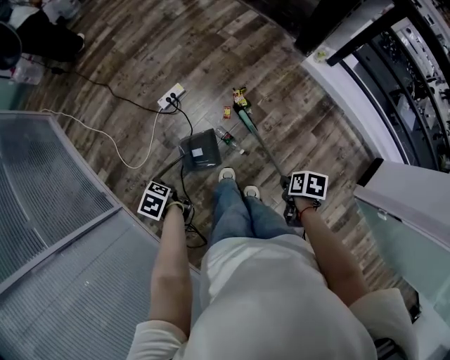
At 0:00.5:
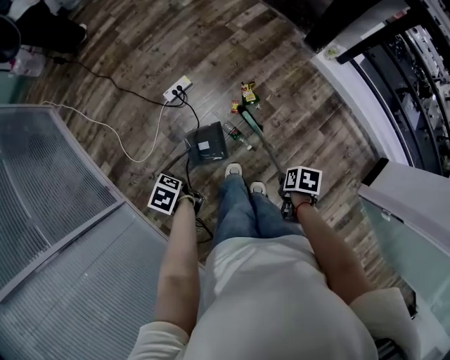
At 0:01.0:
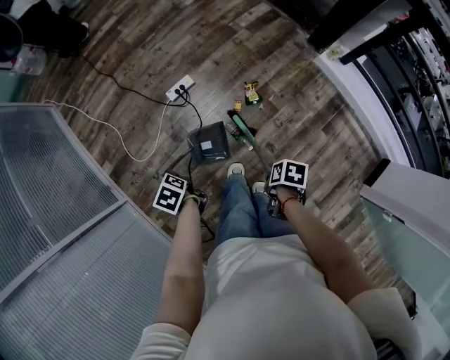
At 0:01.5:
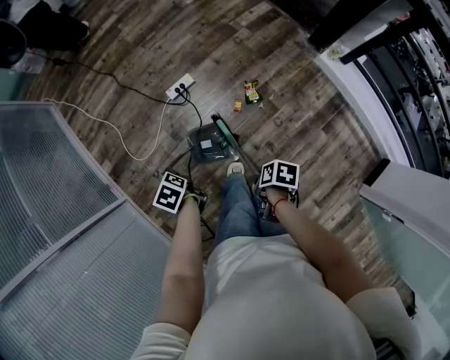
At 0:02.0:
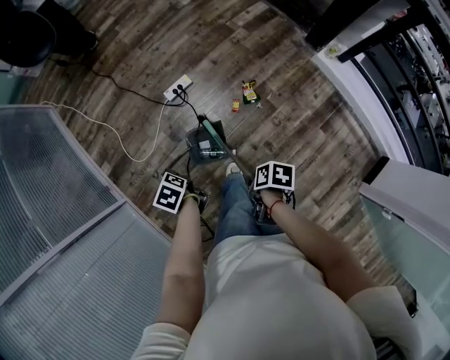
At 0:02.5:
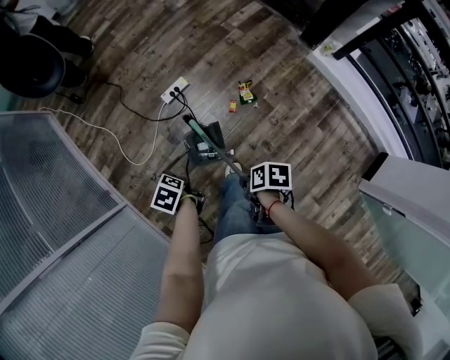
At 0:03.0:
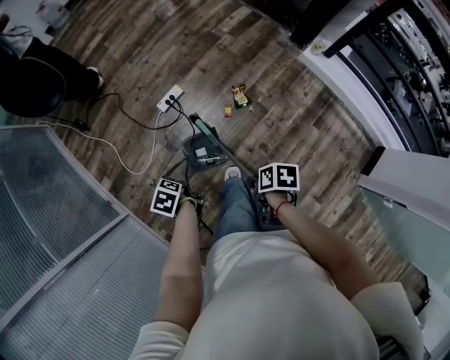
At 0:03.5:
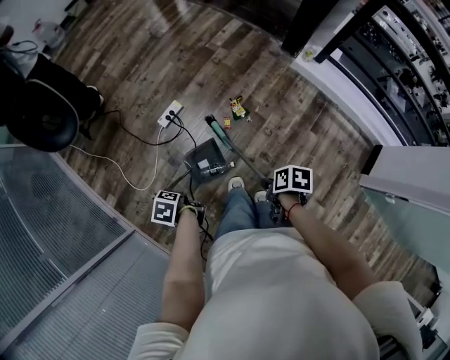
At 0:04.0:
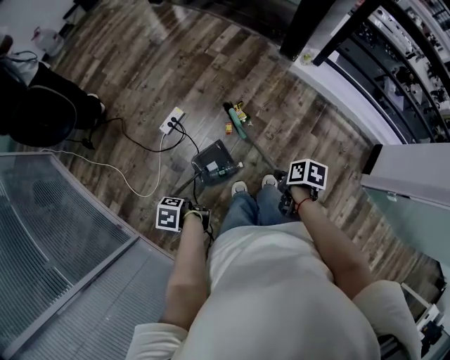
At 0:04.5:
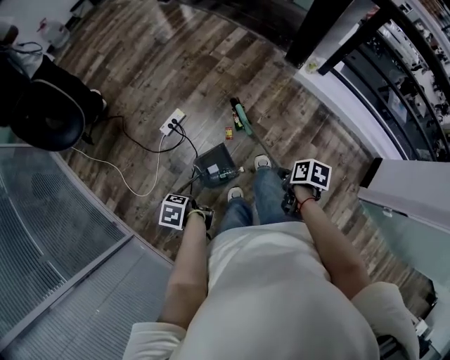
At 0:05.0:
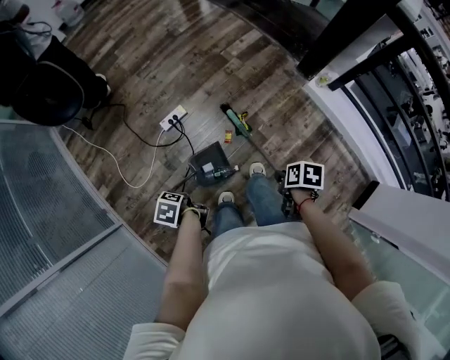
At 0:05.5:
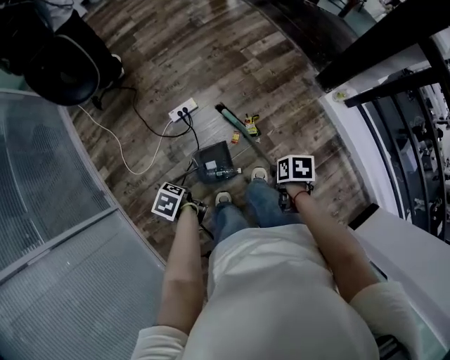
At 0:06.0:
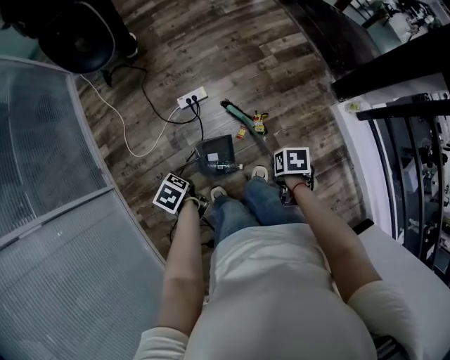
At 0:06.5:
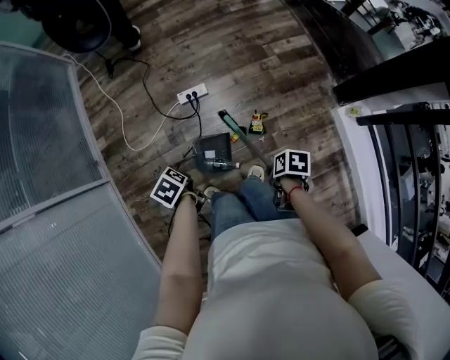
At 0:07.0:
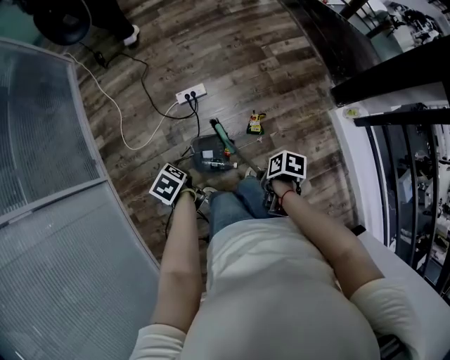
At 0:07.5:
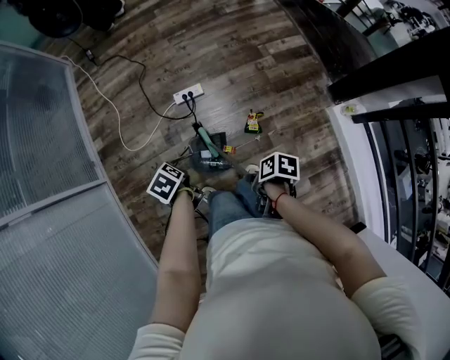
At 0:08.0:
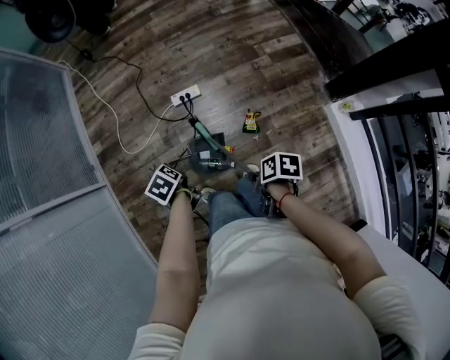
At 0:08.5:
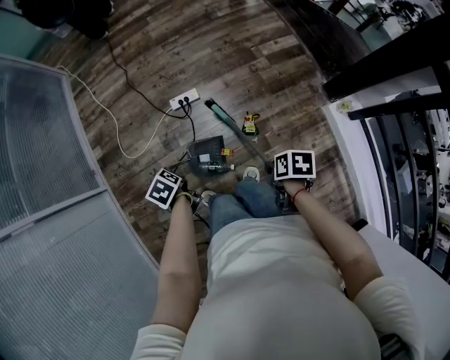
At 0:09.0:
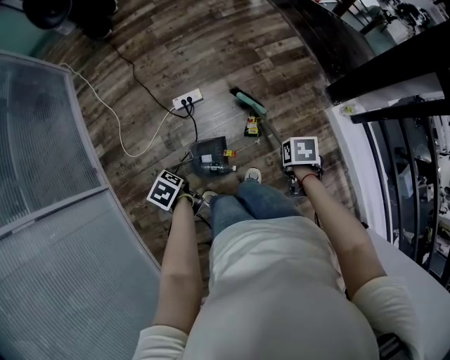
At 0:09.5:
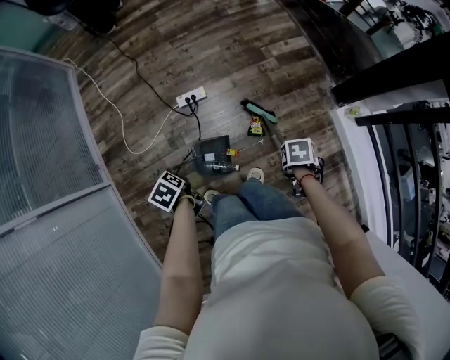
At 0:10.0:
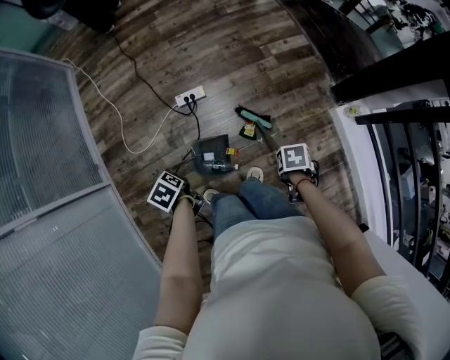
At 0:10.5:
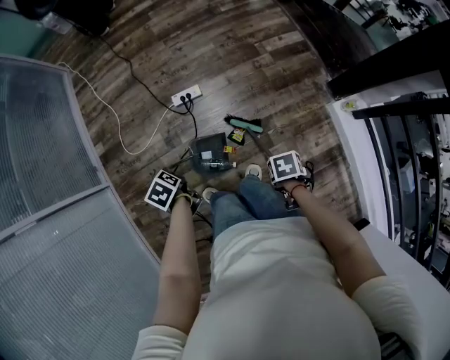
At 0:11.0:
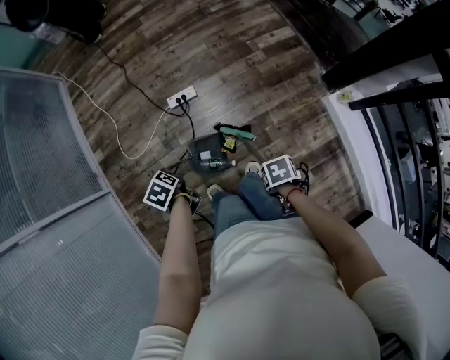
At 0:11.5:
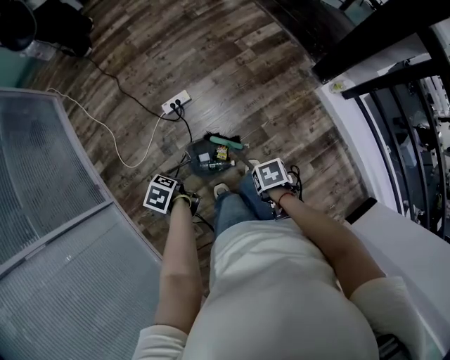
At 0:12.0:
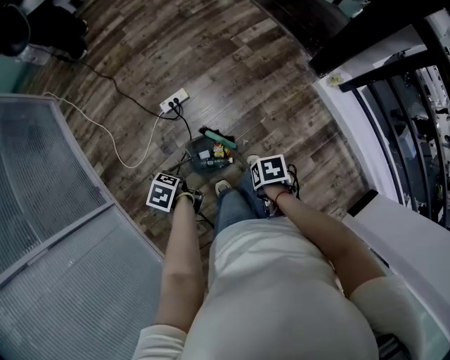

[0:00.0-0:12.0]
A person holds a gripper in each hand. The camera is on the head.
0:04.0 to 0:06.0: The left gripper ends up roughly 15 cm from where it was.

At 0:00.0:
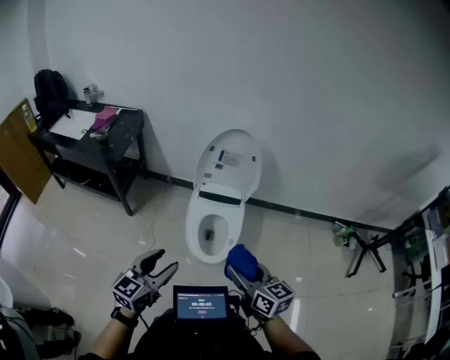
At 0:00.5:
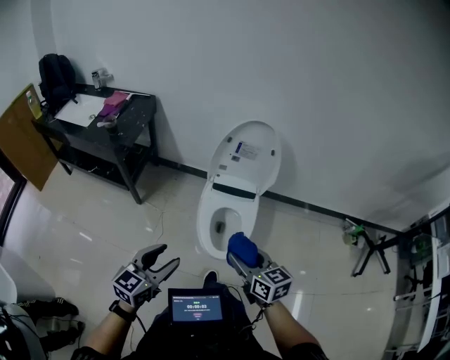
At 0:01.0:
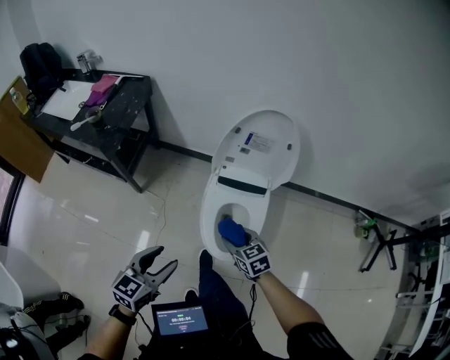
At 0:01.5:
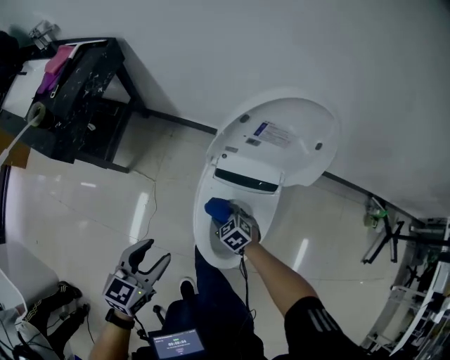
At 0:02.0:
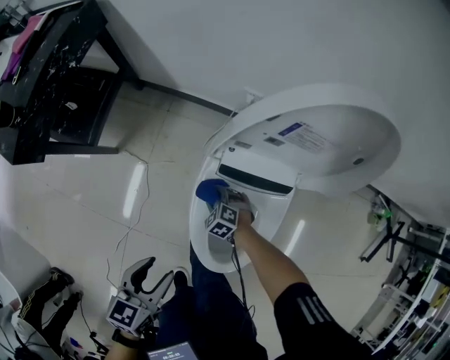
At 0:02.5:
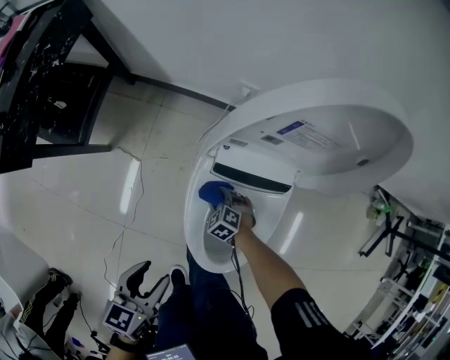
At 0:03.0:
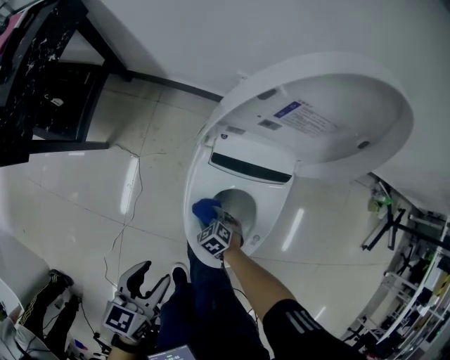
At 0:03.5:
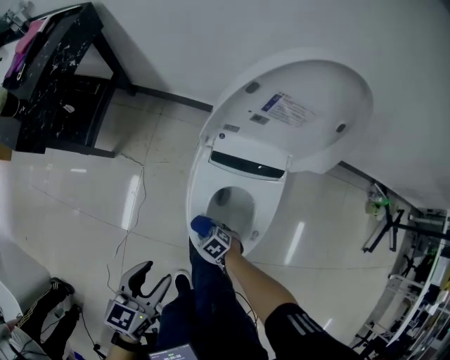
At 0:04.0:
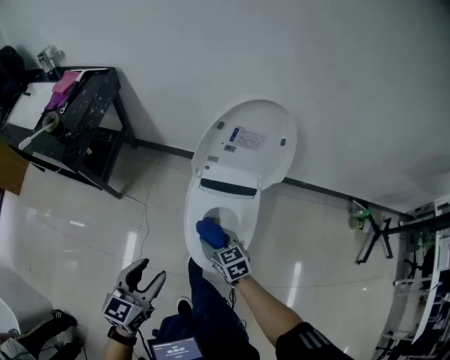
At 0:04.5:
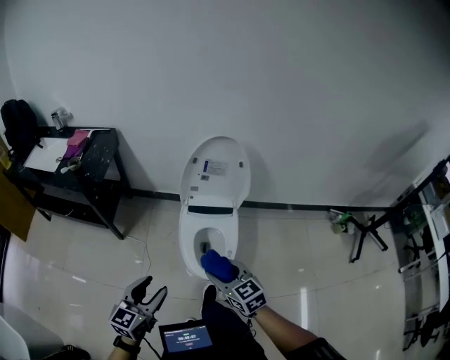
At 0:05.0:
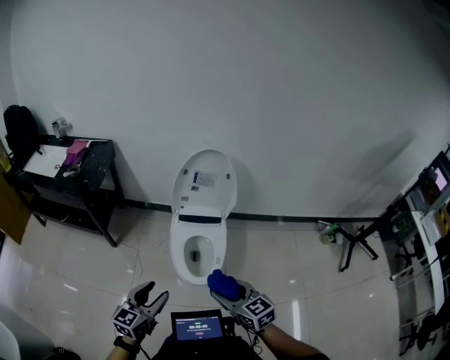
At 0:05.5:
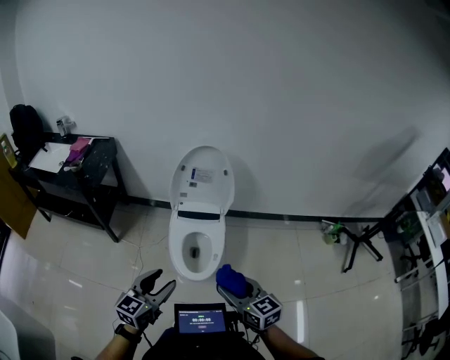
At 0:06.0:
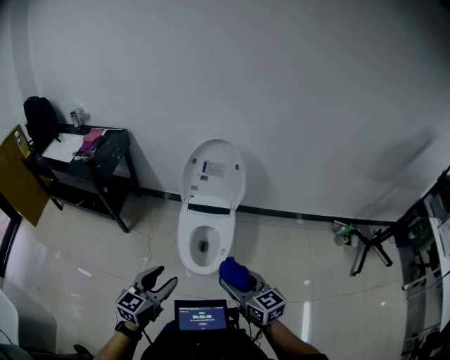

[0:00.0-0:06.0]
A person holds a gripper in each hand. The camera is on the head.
0:00.0 to 0:02.0: The left gripper travels forward and downward by about 50 cm, and swivels roughly 40 degrees. The right gripper shifts approximately 80 cm downward and forward, and tilts its fingers about 50 degrees downward.
0:02.0 to 0:04.0: The right gripper goes some 30 cm upward, and swivels roughly 50 degrees; the left gripper goes some 15 cm upward, and swivels about 20 degrees.
0:04.0 to 0:06.0: The right gripper is displaced upward, backward and to the right by about 50 cm, and swivels roughly 30 degrees. Meanwhile the left gripper heads backward, upward and to the right, covering about 30 cm.

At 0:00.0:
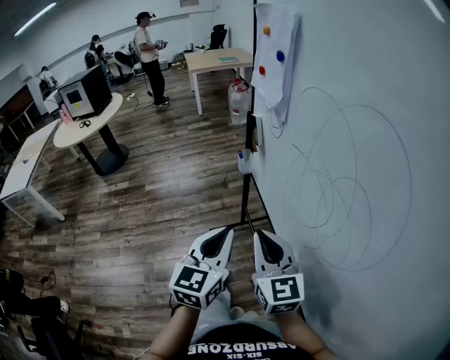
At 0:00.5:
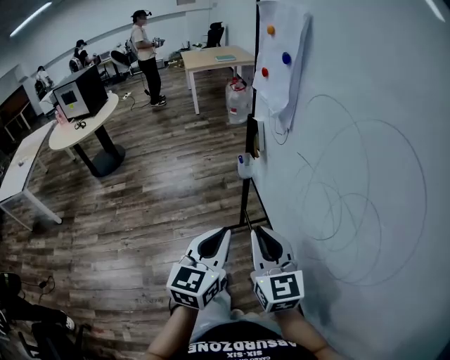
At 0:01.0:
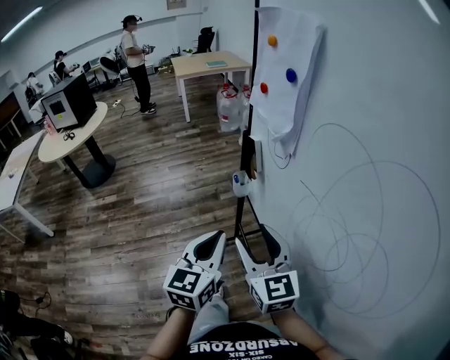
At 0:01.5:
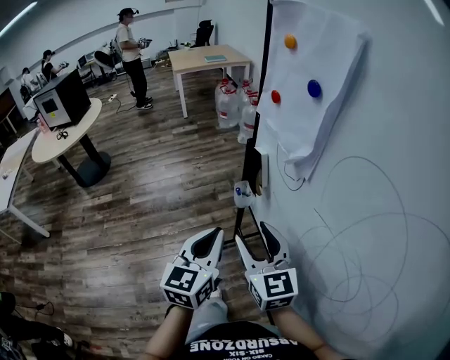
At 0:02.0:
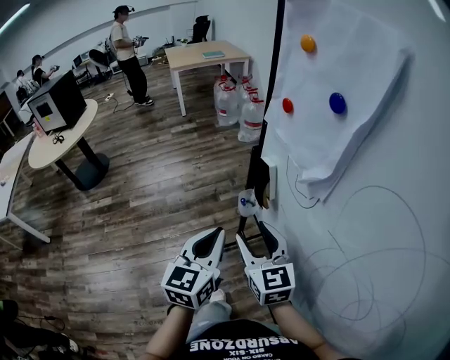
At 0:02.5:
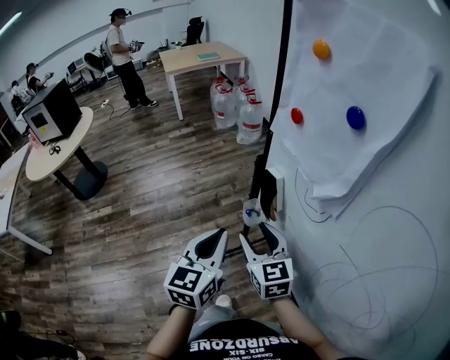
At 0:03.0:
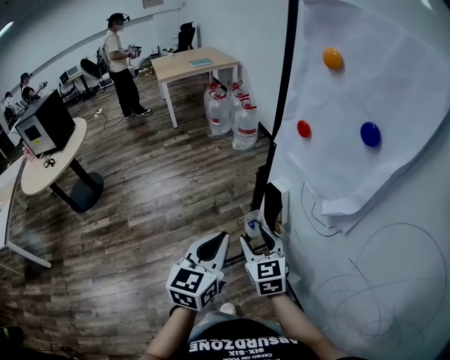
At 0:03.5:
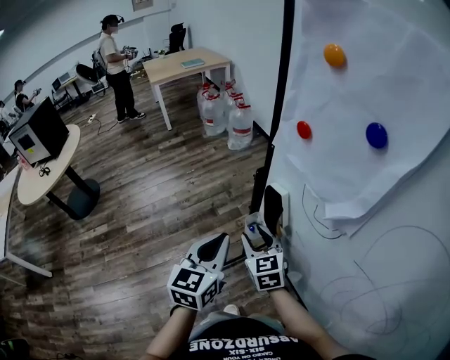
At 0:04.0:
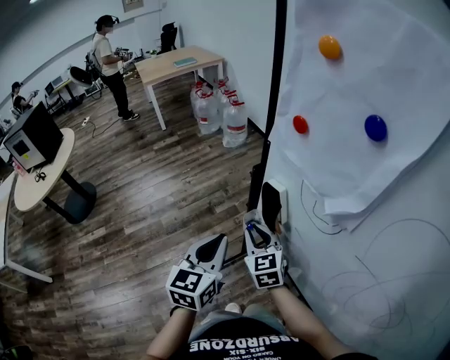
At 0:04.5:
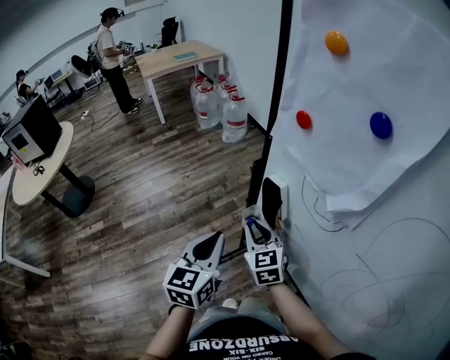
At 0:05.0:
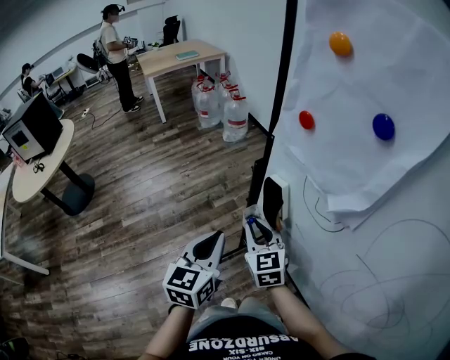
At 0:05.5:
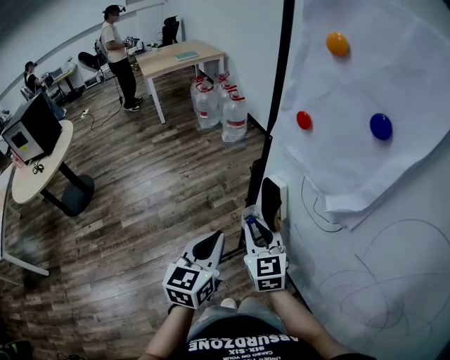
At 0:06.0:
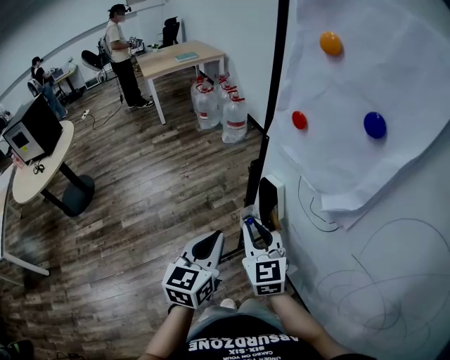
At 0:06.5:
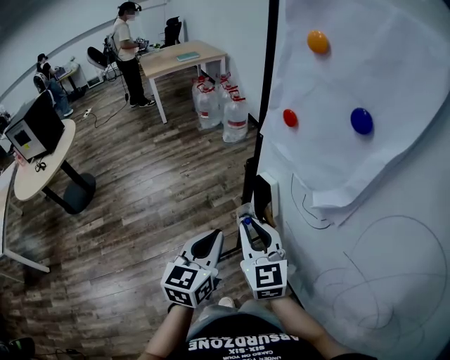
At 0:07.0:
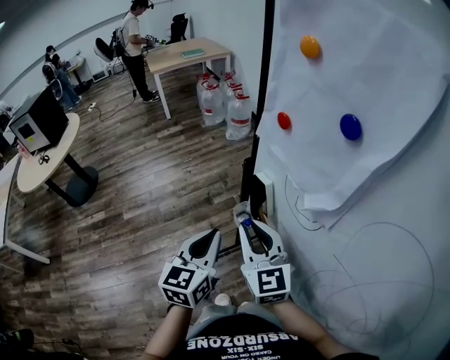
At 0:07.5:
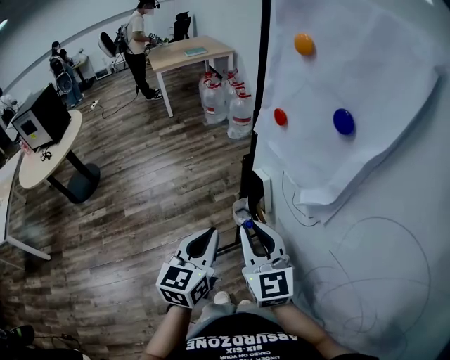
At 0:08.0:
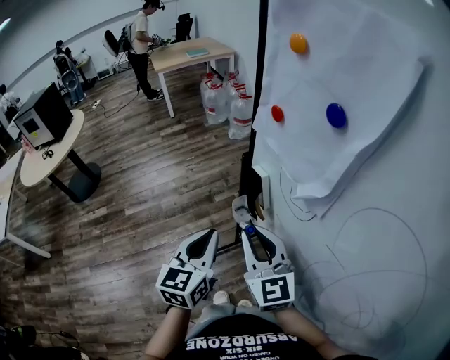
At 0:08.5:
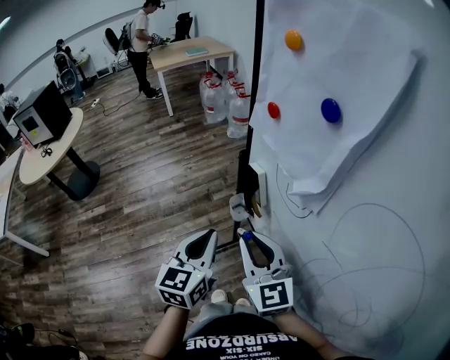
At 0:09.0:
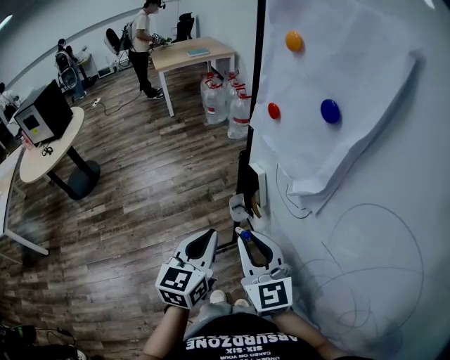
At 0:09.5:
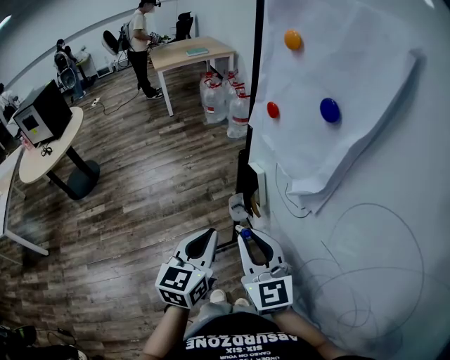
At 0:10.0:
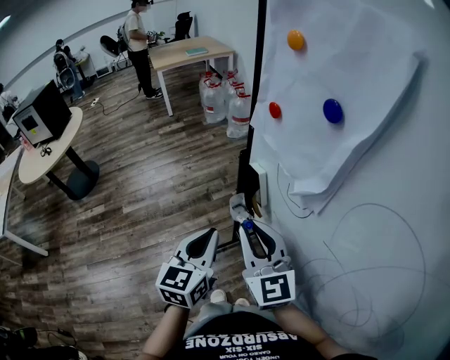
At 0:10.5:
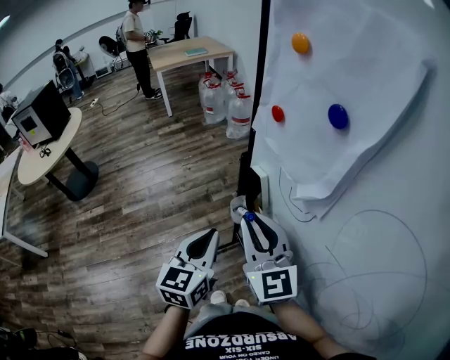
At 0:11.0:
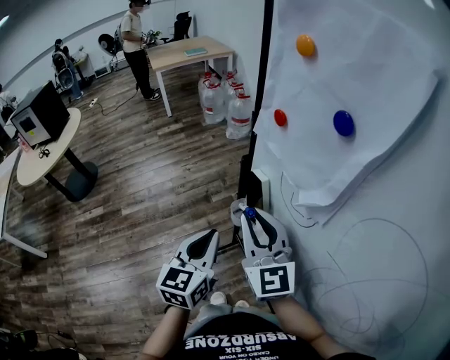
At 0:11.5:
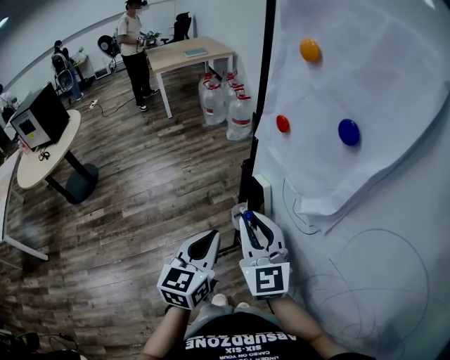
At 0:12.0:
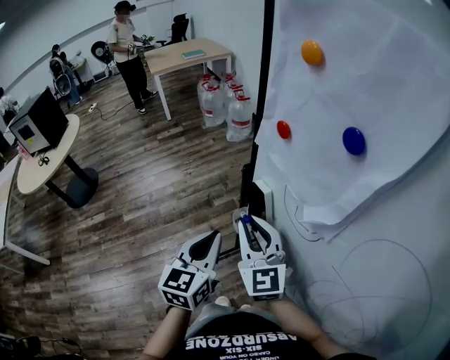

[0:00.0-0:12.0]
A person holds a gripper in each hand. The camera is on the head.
0:00.0 to 0:02.0: The grippers both shift forward by roughly 25 cm. The right gripper opens its fingers.
0:02.0 to 0:04.0: The left gripper is displaced forward by about 10 cm. Meanwhile the right gripper moves forward and downward, some 15 cm, and closes its fingers.
0:04.0 to 0:06.0: The right gripper shifts some 5 cm upward.
0:06.0 to 0:08.0: The right gripper moves backward and upward, some 10 cm. The left gripper moves some 5 cm.
0:08.0 to 0:10.0: There are only small adjustments of the grippers.
0:10.0 to 0:12.0: The right gripper is displaced forward by approximately 5 cm.
